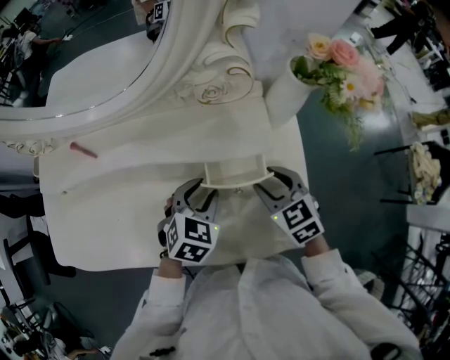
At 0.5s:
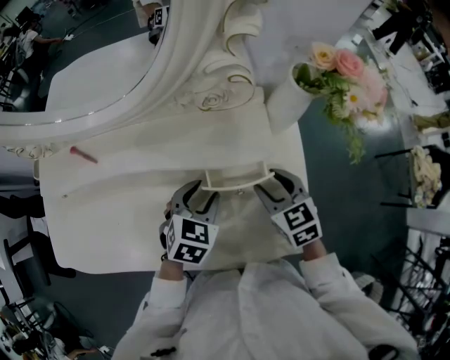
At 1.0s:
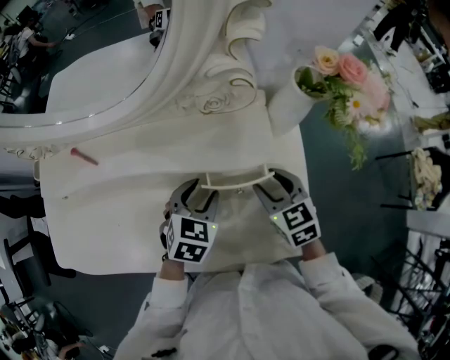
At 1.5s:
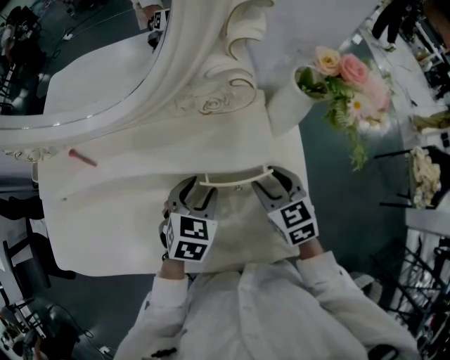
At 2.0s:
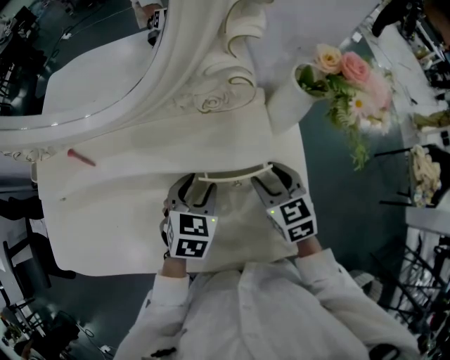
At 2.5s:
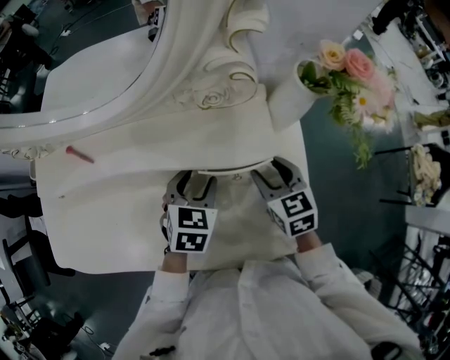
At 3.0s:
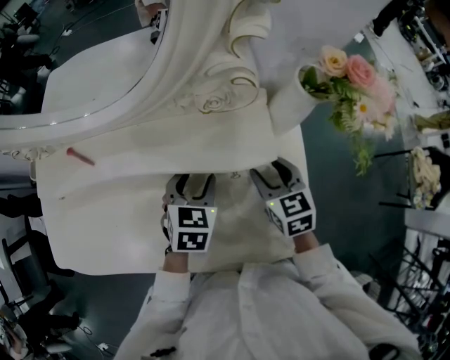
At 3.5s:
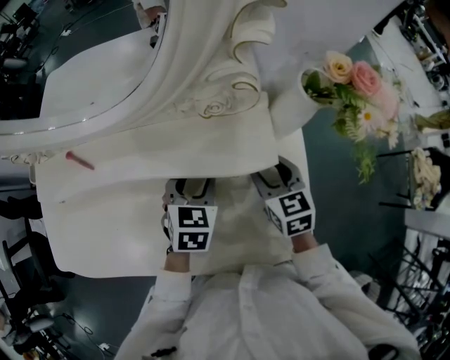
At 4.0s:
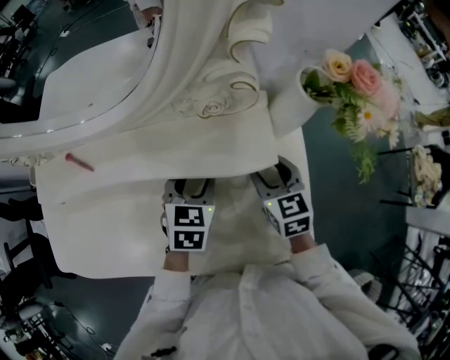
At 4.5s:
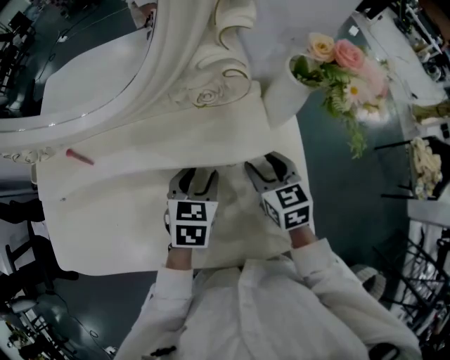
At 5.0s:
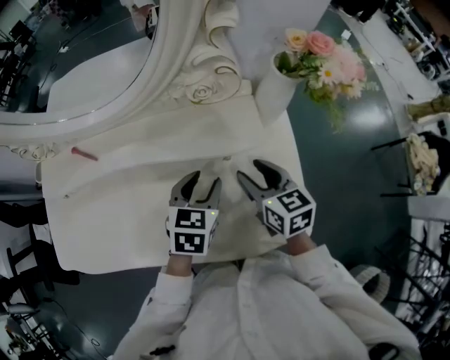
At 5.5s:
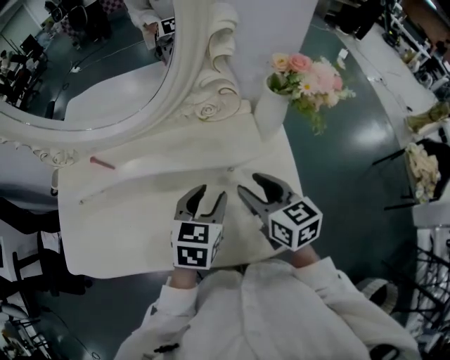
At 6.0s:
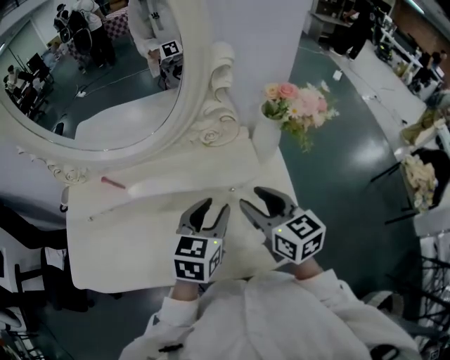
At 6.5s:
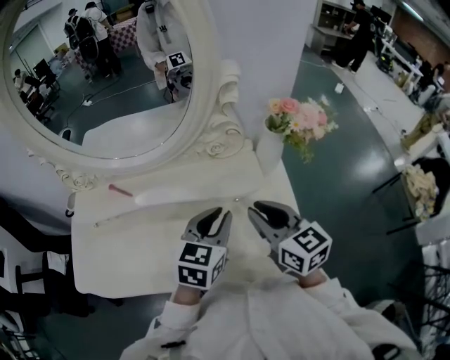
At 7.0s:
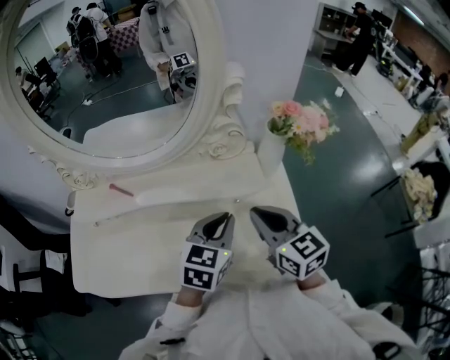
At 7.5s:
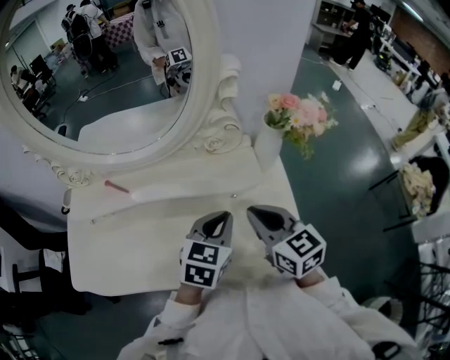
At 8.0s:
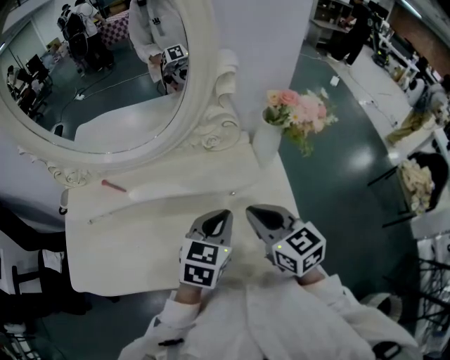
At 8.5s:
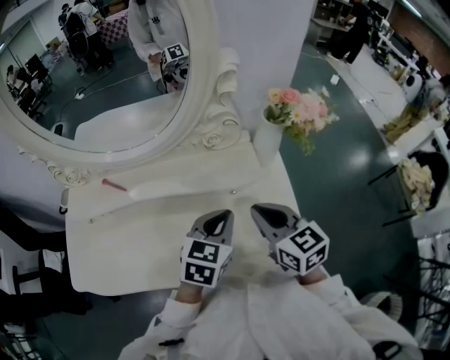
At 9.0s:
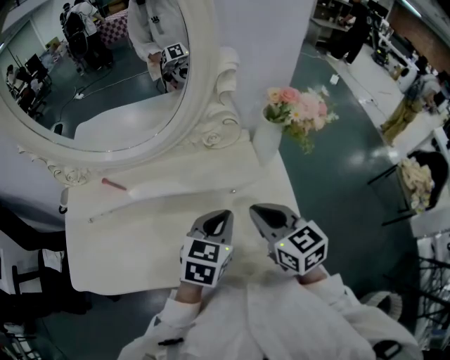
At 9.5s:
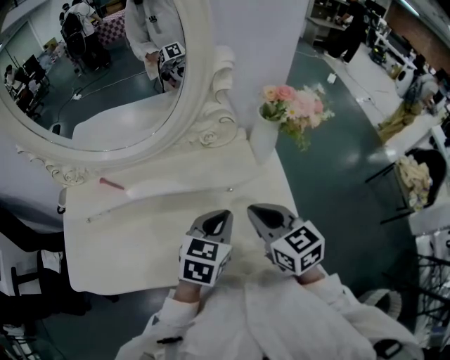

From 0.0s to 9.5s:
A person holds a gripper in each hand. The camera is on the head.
From 0.0s to 2.0s: The grippers make only small movements.
From 2.0s to 4.0s: There are only small adjustments of the grippers.
From 4.0s to 5.5s: Both grippers move upward and backward, approximately 10 cm. The right gripper turns by approximately 20 degrees.
From 5.5s to 7.5s: The grippers both shift upward by about 5 cm. The left gripper closes, while the right gripper closes its fingers.
From 7.5s to 9.5s: The grippers make only small movements.

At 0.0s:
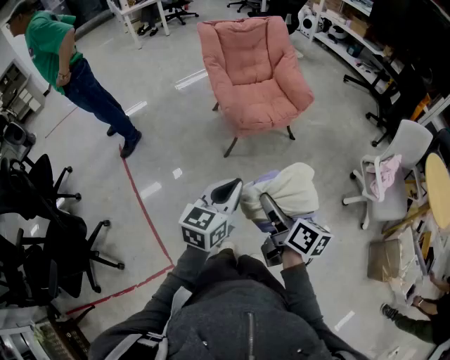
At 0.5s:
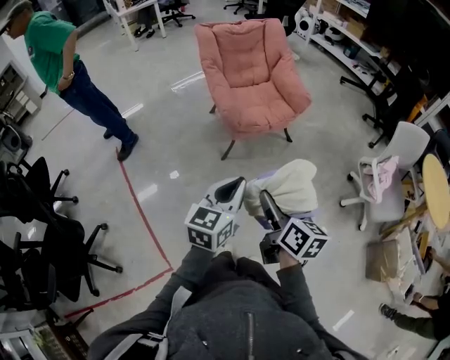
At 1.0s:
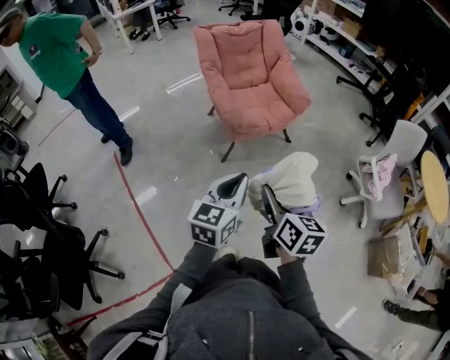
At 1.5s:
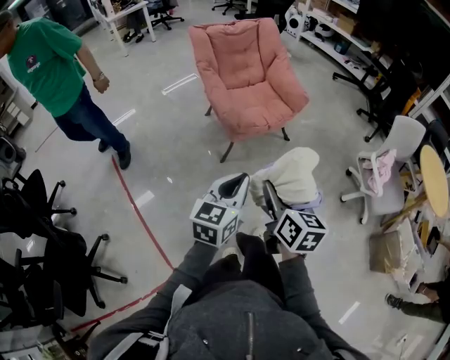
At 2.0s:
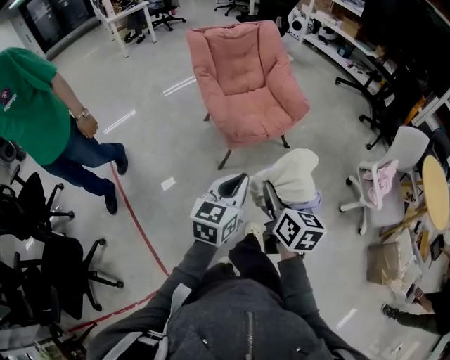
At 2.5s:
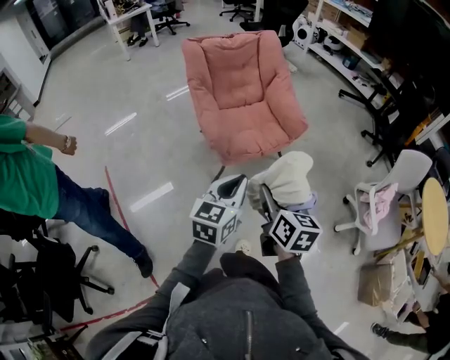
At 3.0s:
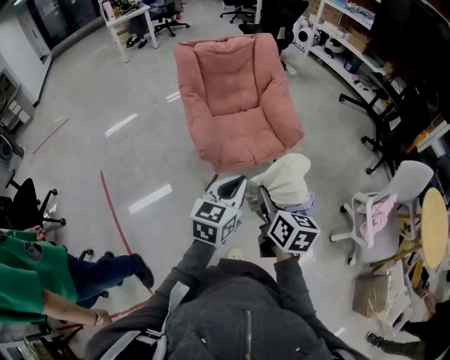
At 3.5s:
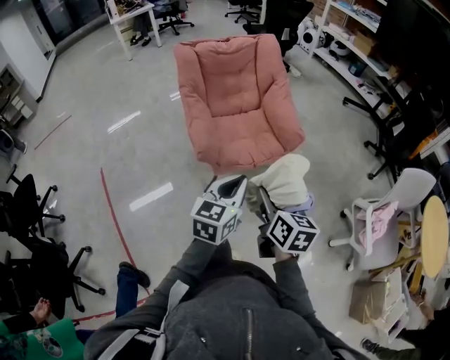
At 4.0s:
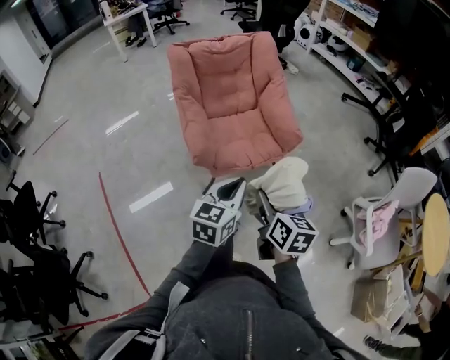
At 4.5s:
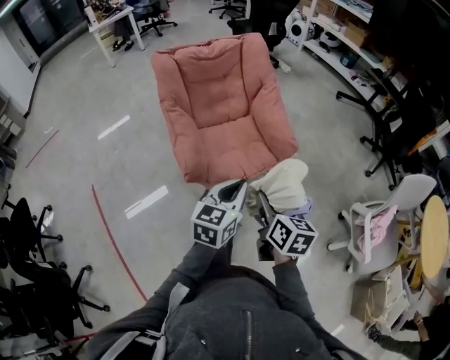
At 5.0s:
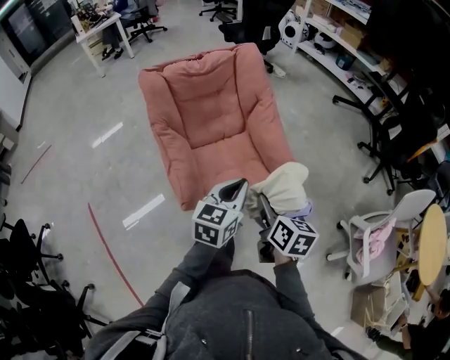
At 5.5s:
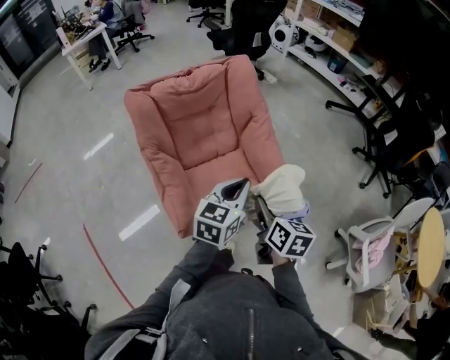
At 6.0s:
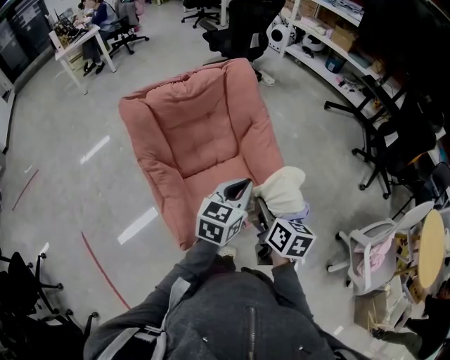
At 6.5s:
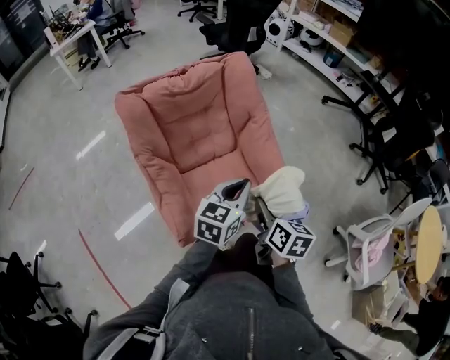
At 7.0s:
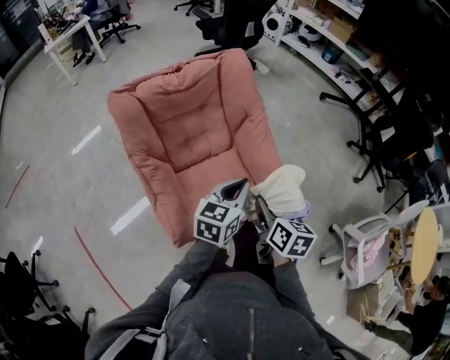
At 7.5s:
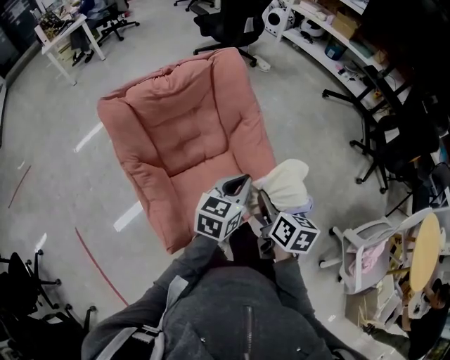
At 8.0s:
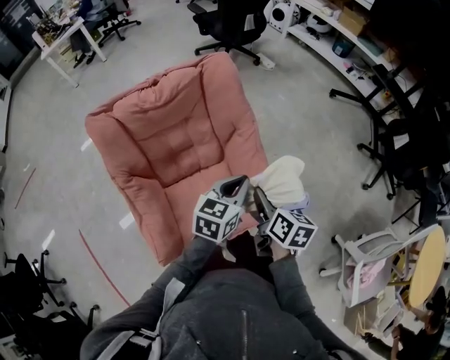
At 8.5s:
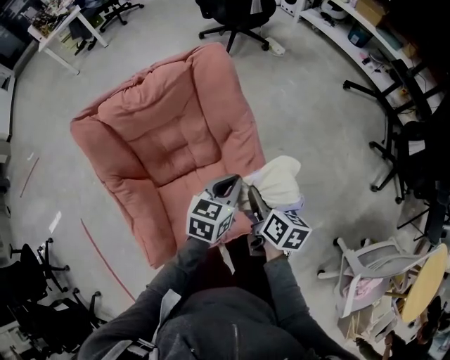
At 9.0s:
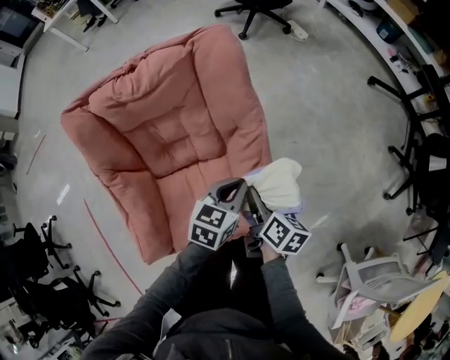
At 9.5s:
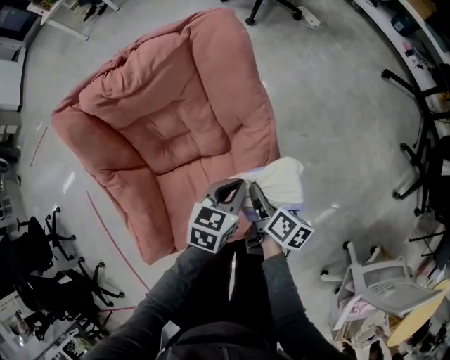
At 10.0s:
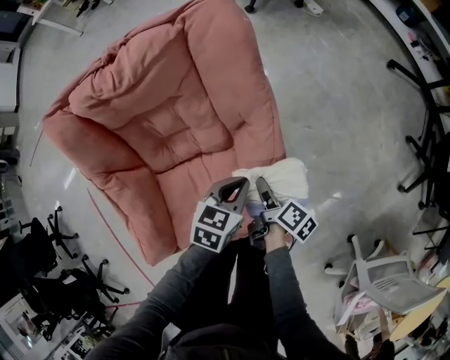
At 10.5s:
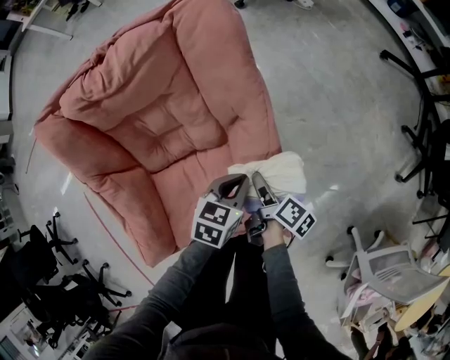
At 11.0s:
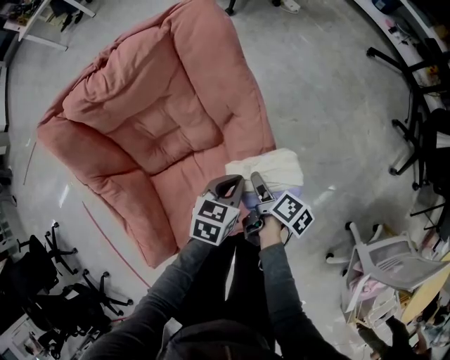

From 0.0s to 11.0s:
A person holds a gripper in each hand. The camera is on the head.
From 0.0s to 2.0s: The grippers both shift forward by some 10 cm. The right gripper turns by approximately 30 degrees.
From 2.0s to 3.5s: The right gripper moves forward, about 20 cm, while the left gripper goes roughly 25 cm forward and to the right.
From 3.5s to 5.5s: The grippers both shift forward by roughly 30 cm.
From 5.5s to 7.5s: Both grippers move forward, roughly 10 cm.
From 7.5s to 9.0s: Both grippers travel together forward and downward, roughly 25 cm. The right gripper turns by about 20 degrees.
From 9.0s to 11.0s: The grippers both shift downward by approximately 10 cm. The right gripper changes its angle by about 30 degrees.

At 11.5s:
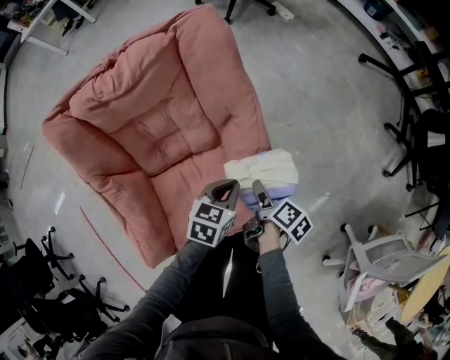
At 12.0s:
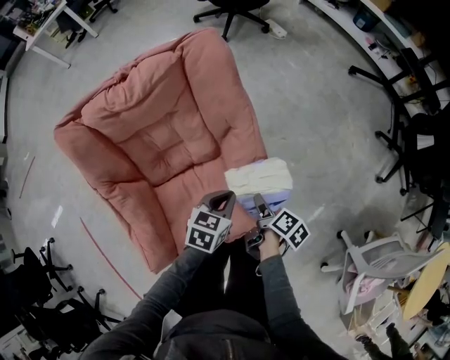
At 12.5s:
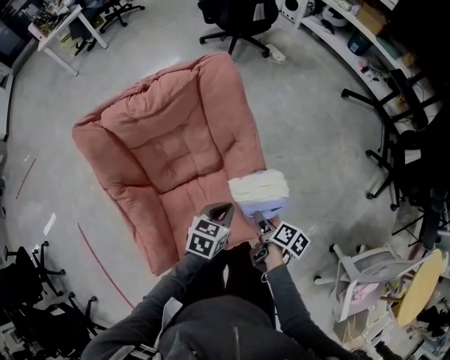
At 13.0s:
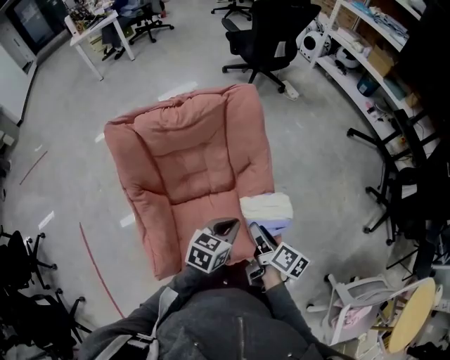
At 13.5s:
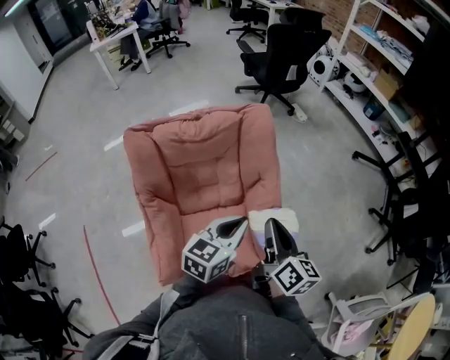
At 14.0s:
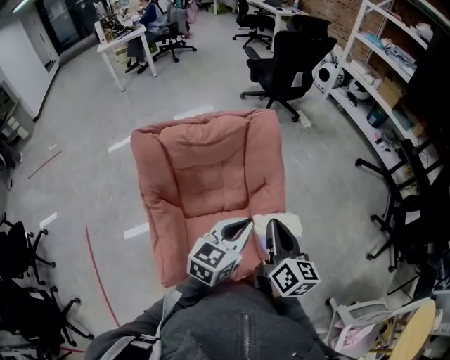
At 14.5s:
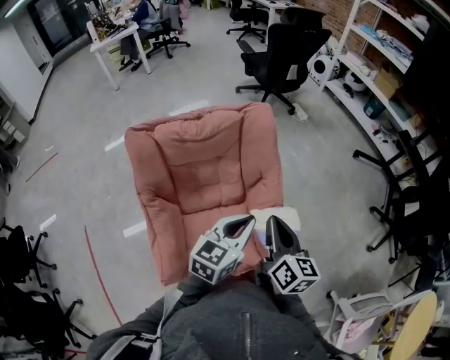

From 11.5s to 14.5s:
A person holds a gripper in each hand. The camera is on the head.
From 11.5s to 13.0s: The right gripper is displaced upward by about 20 cm, and rotates some 30 degrees, while the left gripper goes some 15 cm upward and backward.
From 13.0s to 14.5s: Both grippers move upward, about 15 cm. The right gripper rotates some 40 degrees, and closes up. The left gripper changes its angle by about 20 degrees.

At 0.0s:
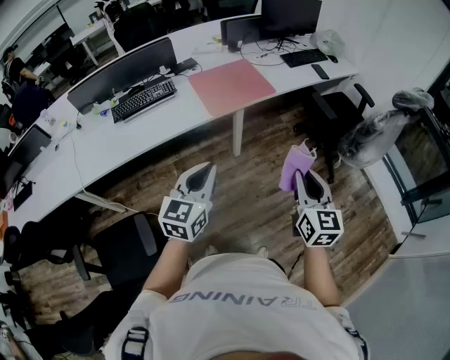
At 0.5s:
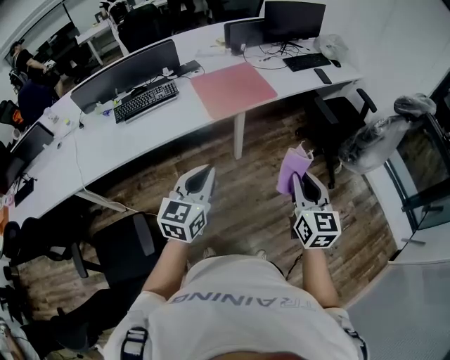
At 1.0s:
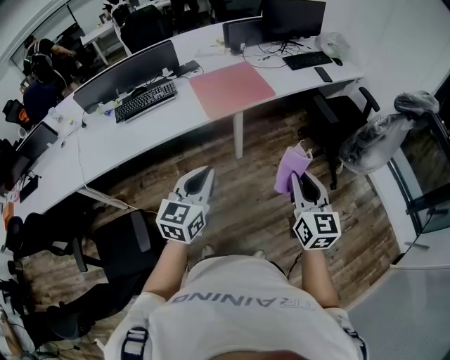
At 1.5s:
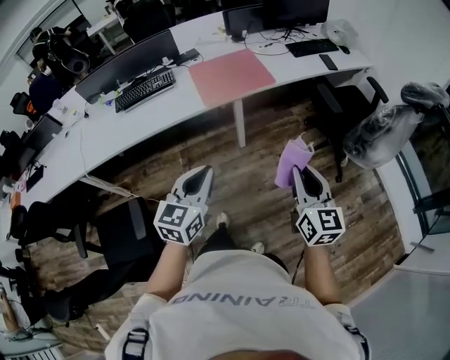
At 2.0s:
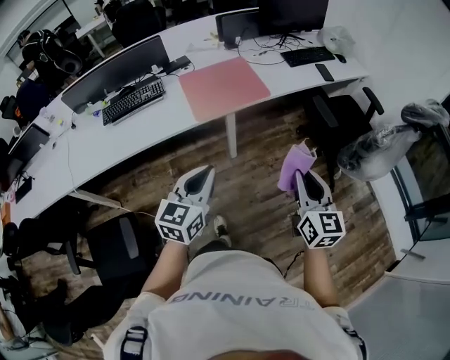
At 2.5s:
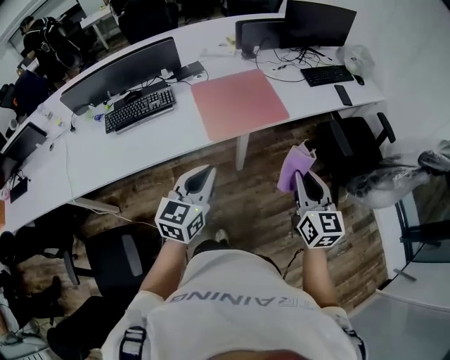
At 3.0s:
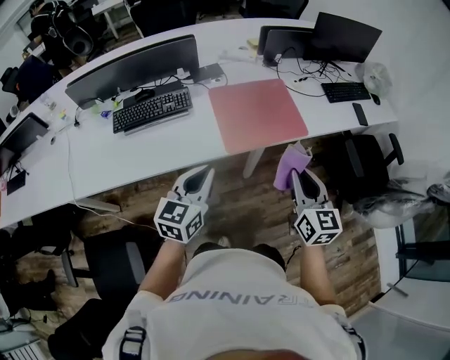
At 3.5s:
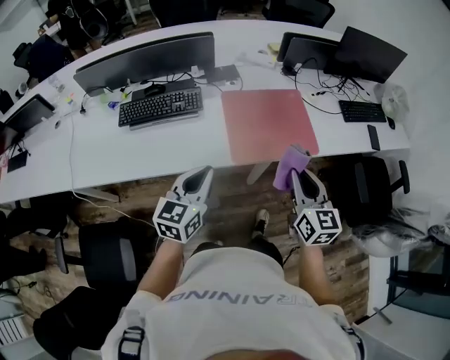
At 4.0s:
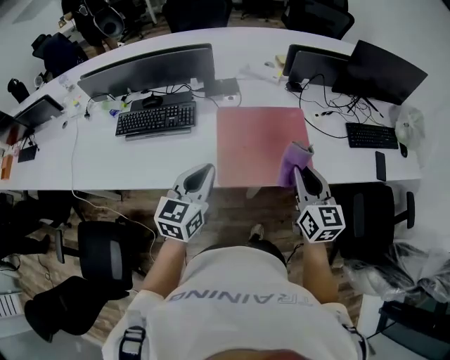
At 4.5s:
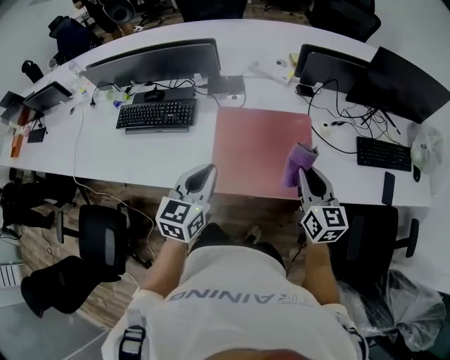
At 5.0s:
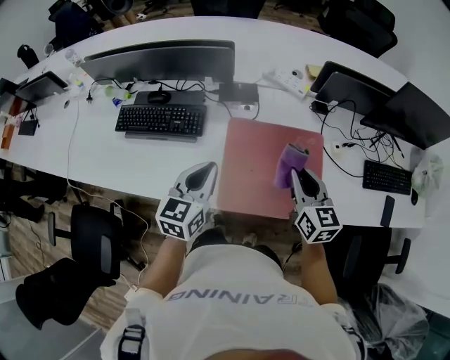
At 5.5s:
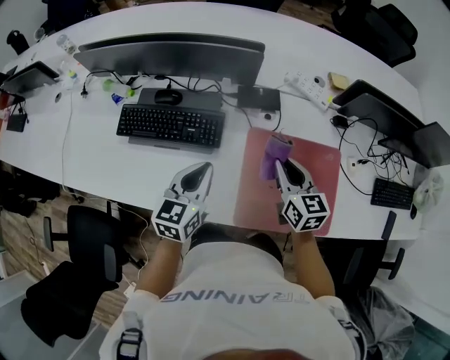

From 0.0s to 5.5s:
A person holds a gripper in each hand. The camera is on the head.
From 0.0s to 2.0s: The left gripper shifts some 15 cm to the right and forward. Meanwhile the right gripper is displaced forward and to the right by roughly 15 cm.
From 2.0s to 3.5s: The two grippers go roughly 35 cm forward and to the left.
From 3.5s to 5.5s: The grippers both shift forward by roughly 35 cm. The right gripper turns by about 30 degrees.
